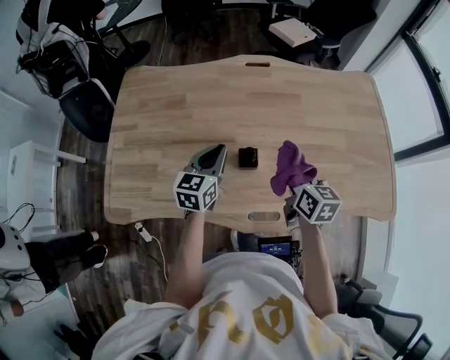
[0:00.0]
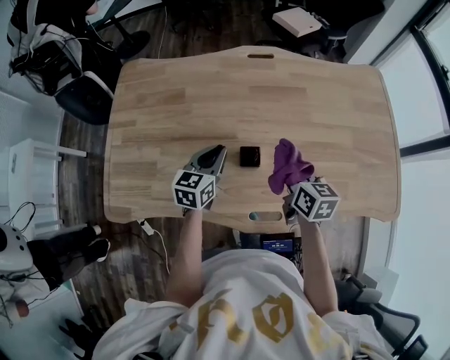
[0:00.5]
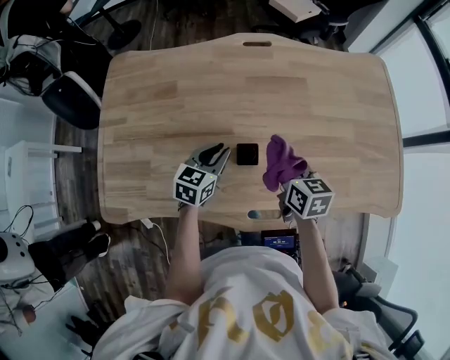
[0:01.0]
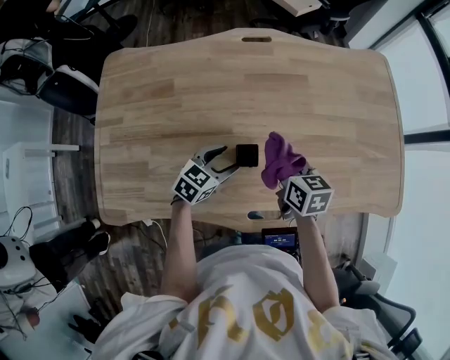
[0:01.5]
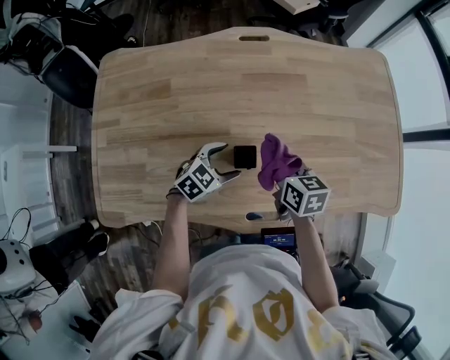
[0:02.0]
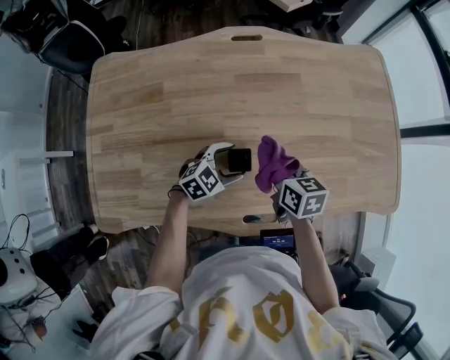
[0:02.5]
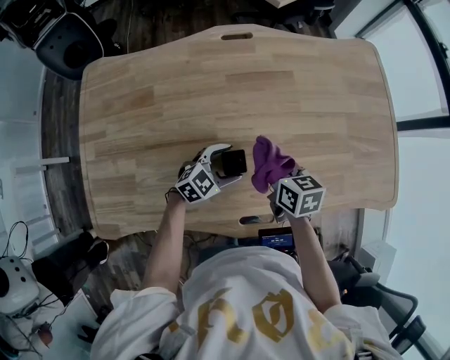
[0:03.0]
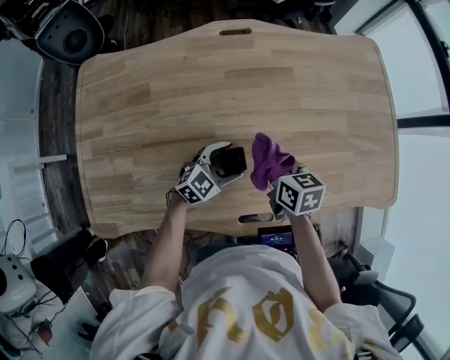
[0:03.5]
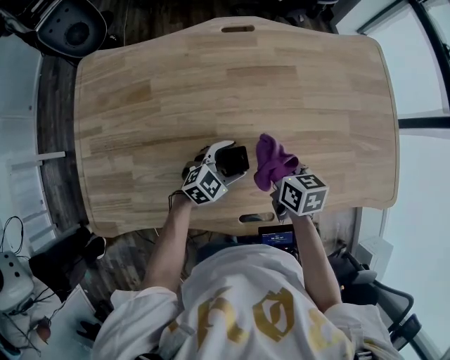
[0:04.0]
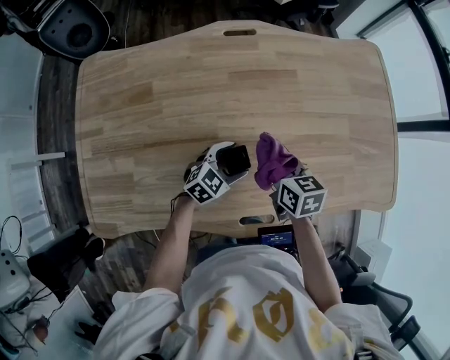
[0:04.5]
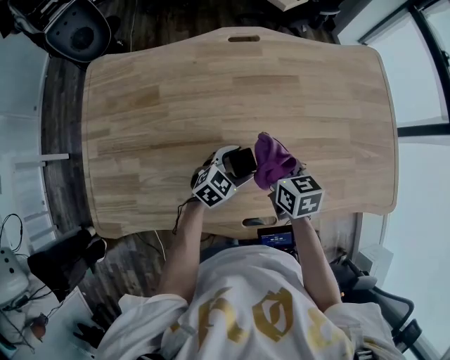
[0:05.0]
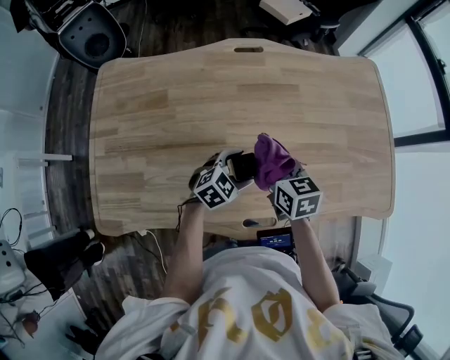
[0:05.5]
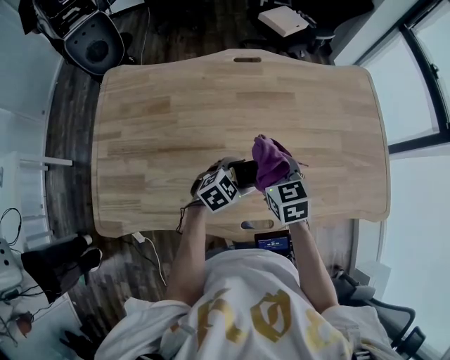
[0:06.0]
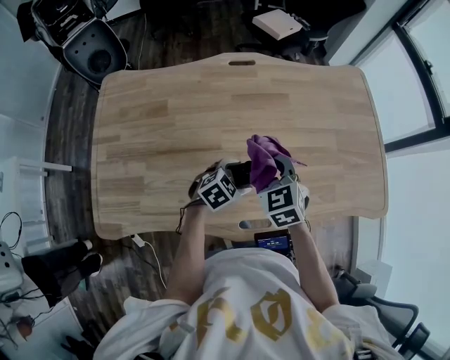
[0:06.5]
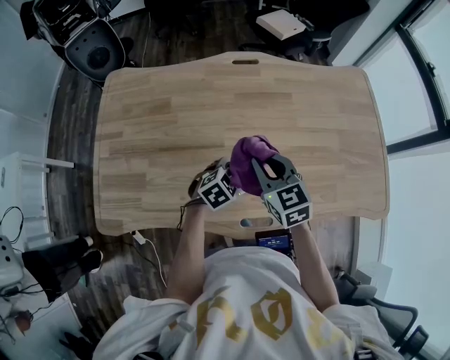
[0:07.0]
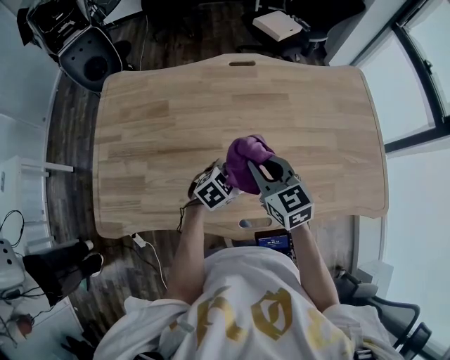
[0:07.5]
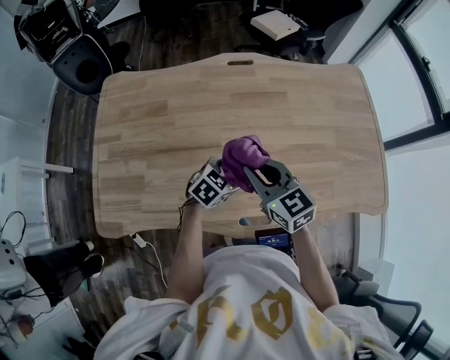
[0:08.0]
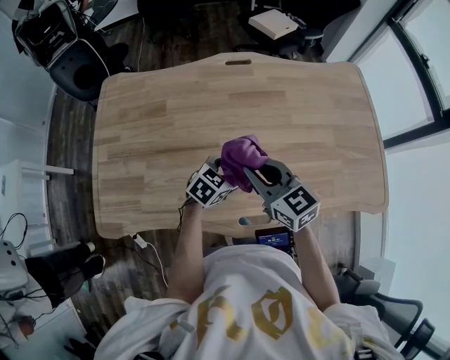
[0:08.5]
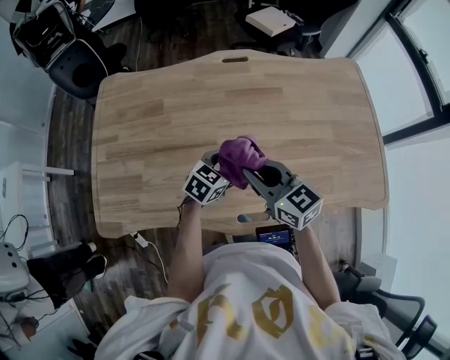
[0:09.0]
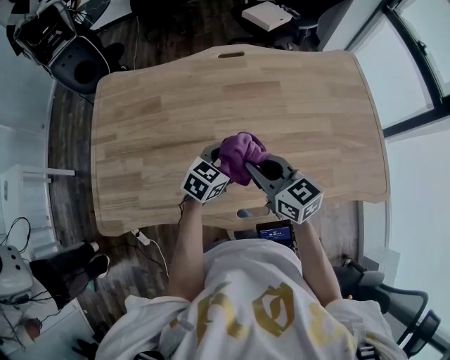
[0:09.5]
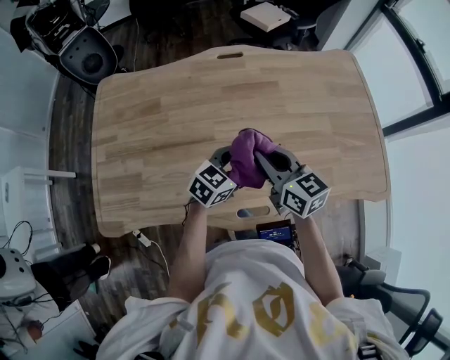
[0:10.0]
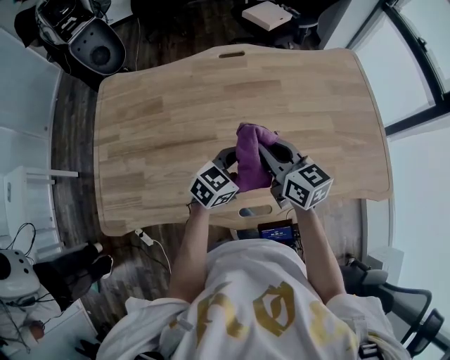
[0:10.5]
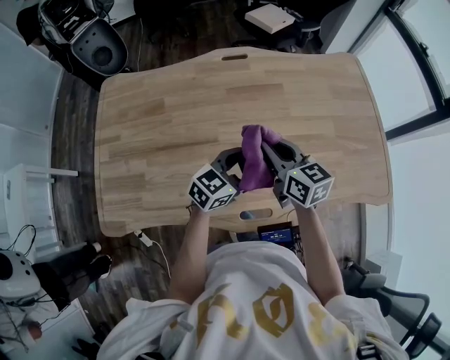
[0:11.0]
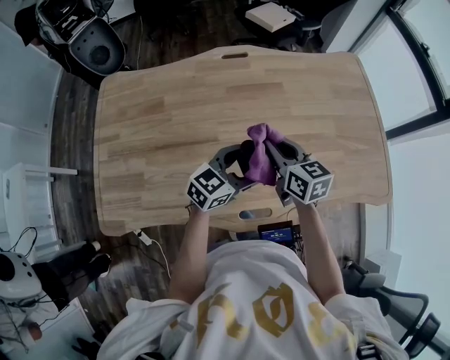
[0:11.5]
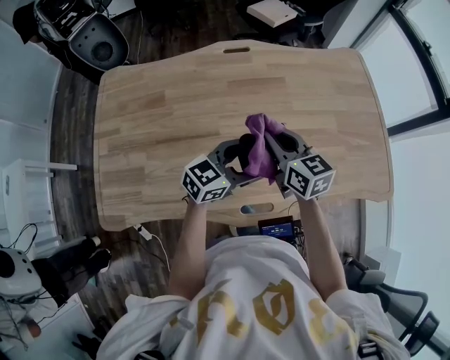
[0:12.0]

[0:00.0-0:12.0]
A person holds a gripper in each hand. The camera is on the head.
0:00.0 to 0:02.0: The right gripper heads downward, covering about 10 cm; the left gripper travels downward by some 15 cm, rotates roughly 50 degrees, and opens its fingers.
0:02.0 to 0:04.0: The left gripper changes place by about 5 cm.
0:04.0 to 0:06.0: The two grippers go about 10 cm upward. The right gripper swivels approximately 30 degrees.
0:06.0 to 0:08.0: The right gripper travels backward and upward by roughly 10 cm, and turns by approximately 20 degrees.
0:08.0 to 0:10.0: The left gripper goes approximately 10 cm upward and to the right; the right gripper heads to the right, covering approximately 5 cm.
0:10.0 to 0:12.0: The left gripper goes some 5 cm upward.

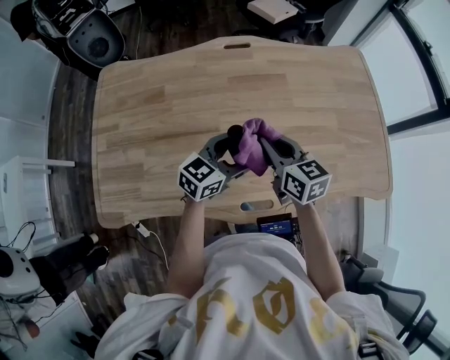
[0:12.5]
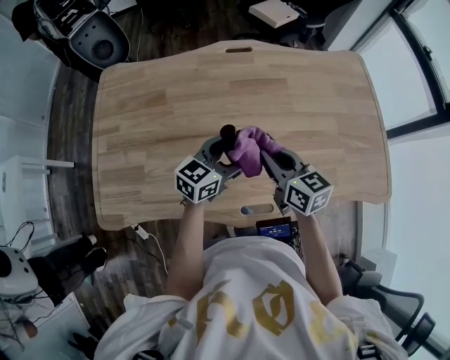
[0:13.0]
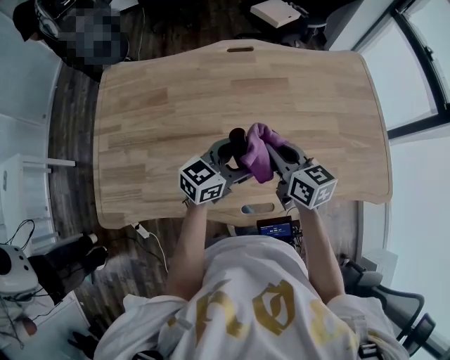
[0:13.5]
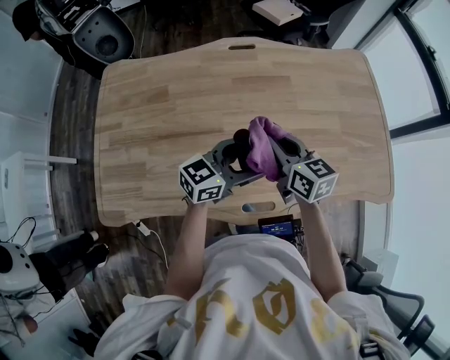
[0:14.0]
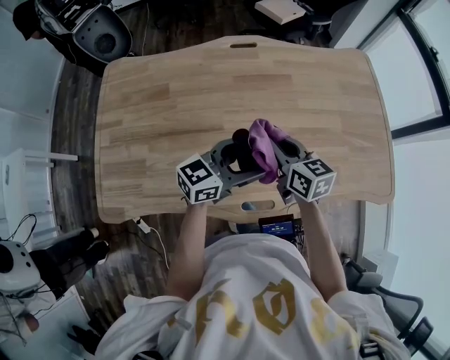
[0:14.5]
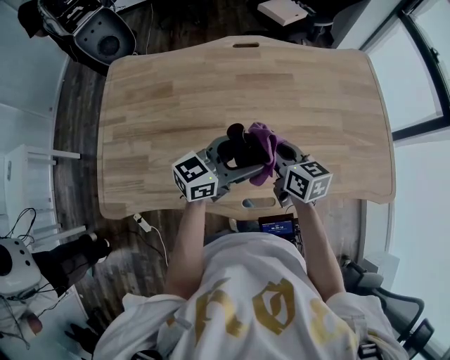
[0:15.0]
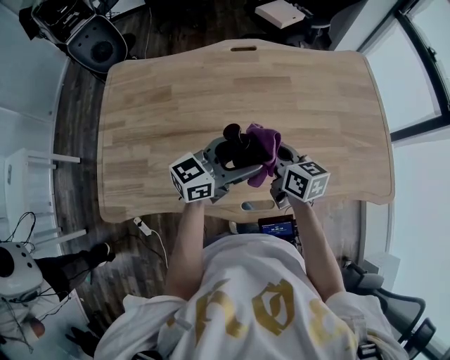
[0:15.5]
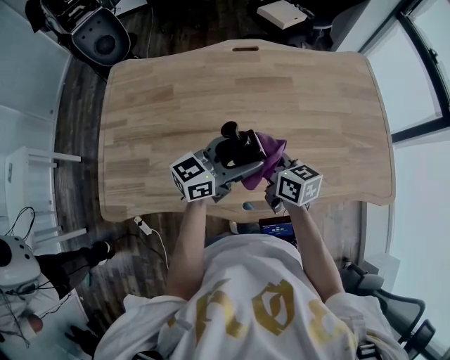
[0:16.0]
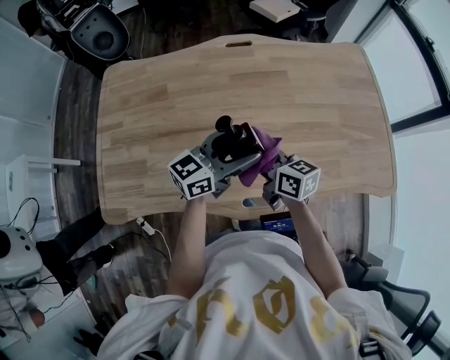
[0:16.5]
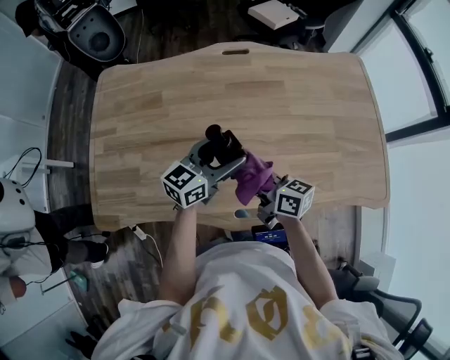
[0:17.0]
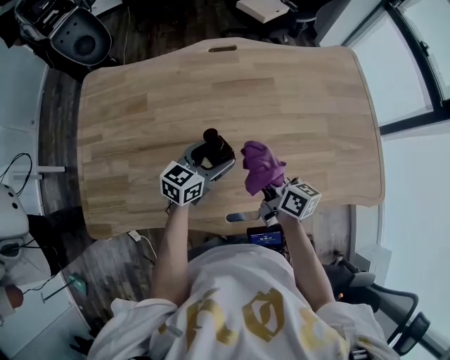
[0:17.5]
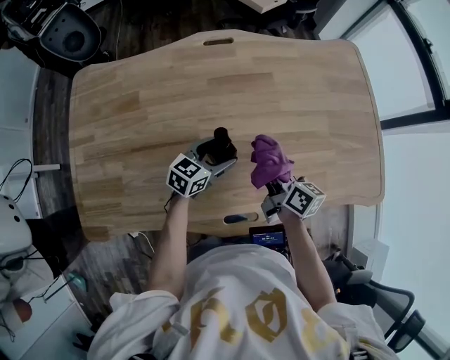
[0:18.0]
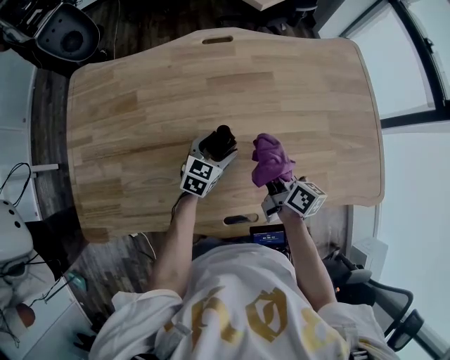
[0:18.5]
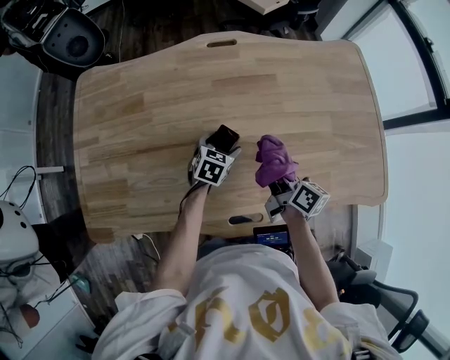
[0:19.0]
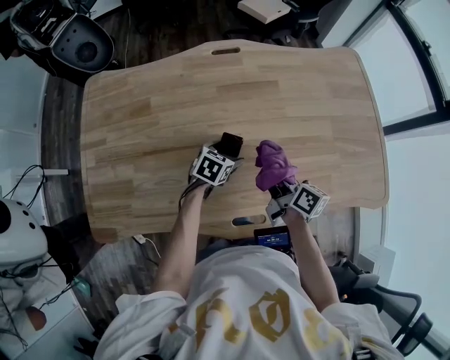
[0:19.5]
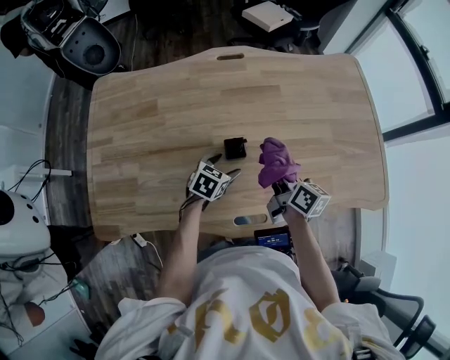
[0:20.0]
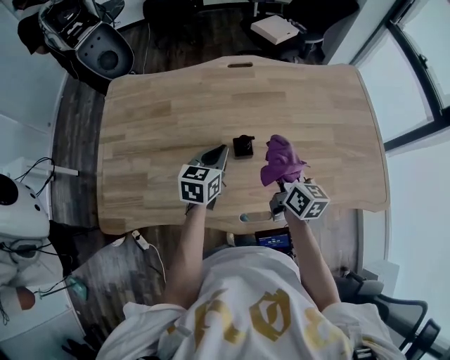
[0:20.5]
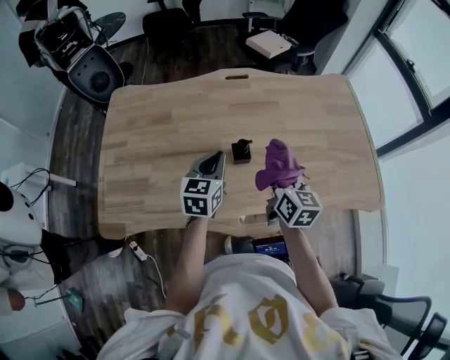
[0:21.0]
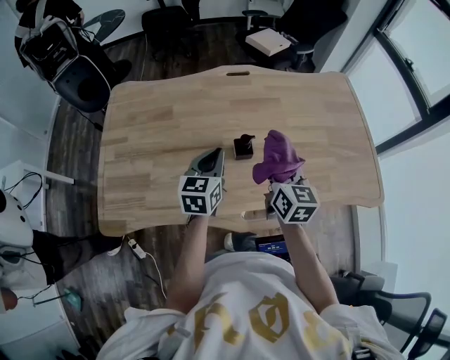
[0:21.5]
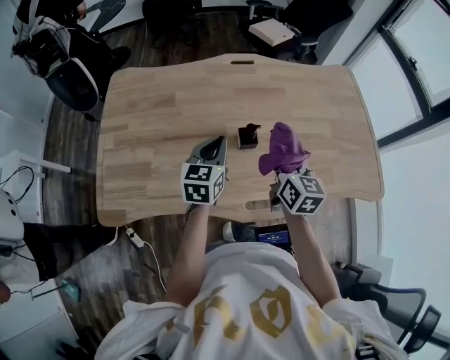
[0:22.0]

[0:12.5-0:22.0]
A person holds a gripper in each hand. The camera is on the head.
0:12.5 to 0:14.5: The grippers make only small movements.
0:14.5 to 0:16.5: The right gripper heads backward, covering approximately 5 cm.
0:16.5 to 0:18.0: The left gripper goes about 20 cm downward, and rotates about 30 degrees. Meanwhile the right gripper moves to the right, downward and forward, some 15 cm, and swivels some 30 degrees.
0:18.0 to 0:20.0: The left gripper turns by approximately 20 degrees.
0:20.0 to 0:22.0: The left gripper goes some 20 cm upward, swivels roughly 40 degrees, and closes up. The right gripper is displaced upward by approximately 10 cm, and rotates approximately 30 degrees.

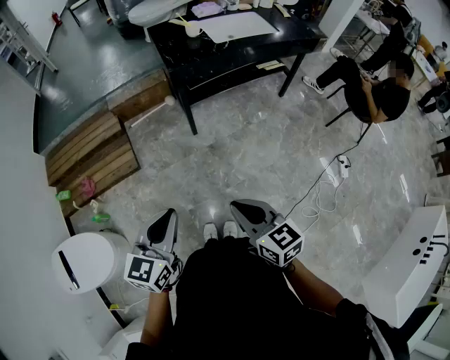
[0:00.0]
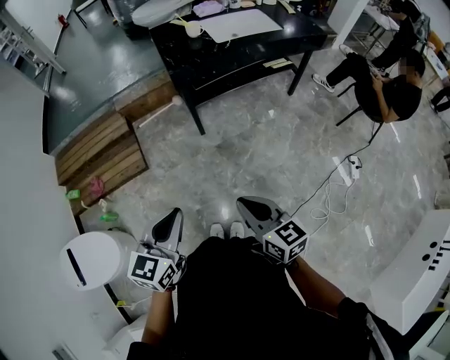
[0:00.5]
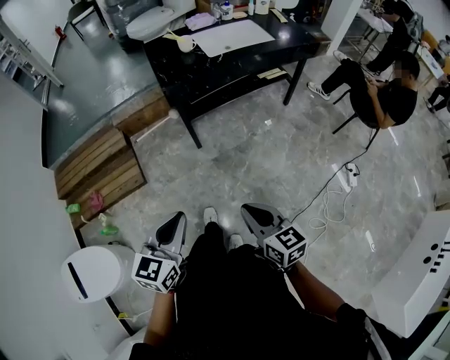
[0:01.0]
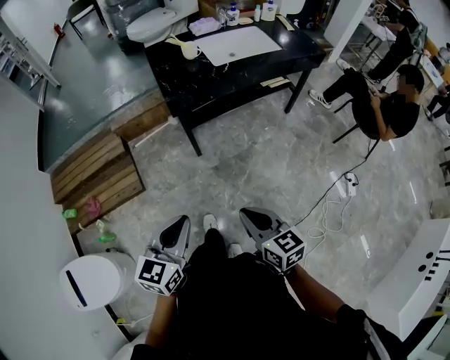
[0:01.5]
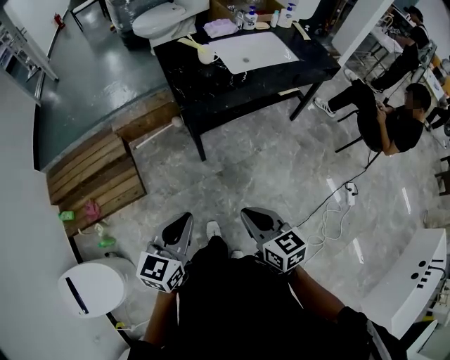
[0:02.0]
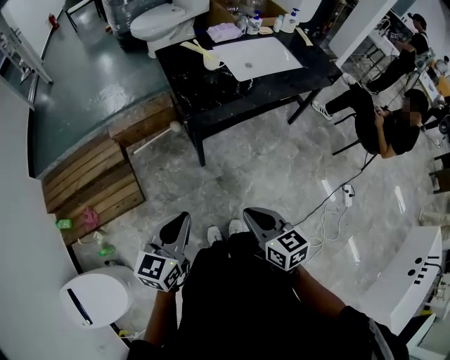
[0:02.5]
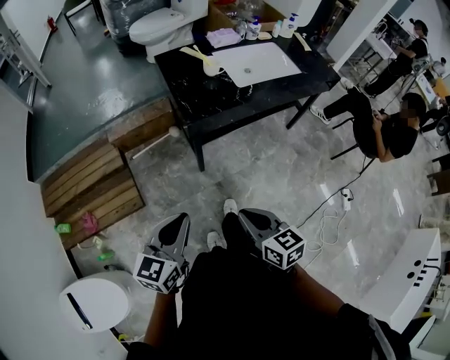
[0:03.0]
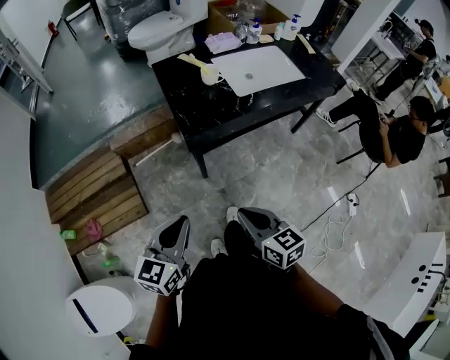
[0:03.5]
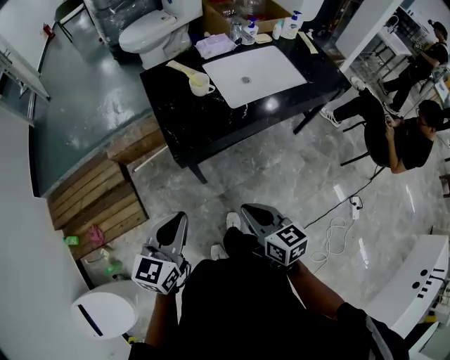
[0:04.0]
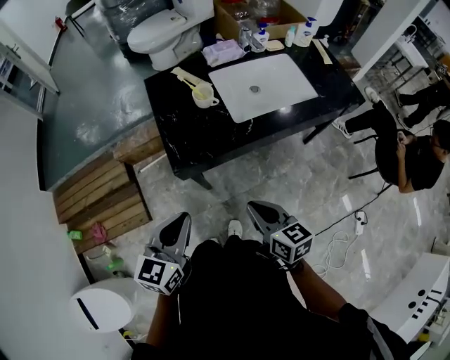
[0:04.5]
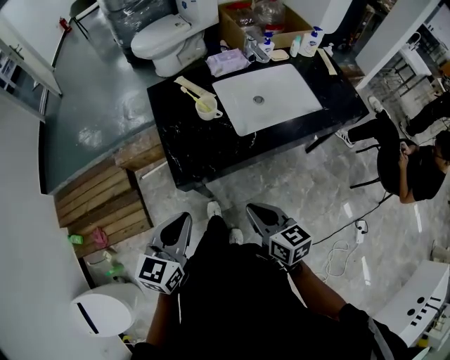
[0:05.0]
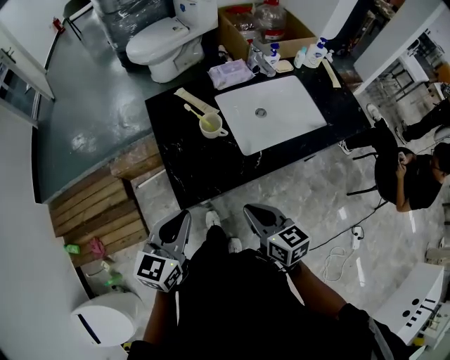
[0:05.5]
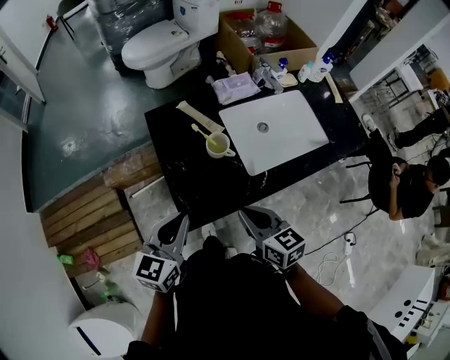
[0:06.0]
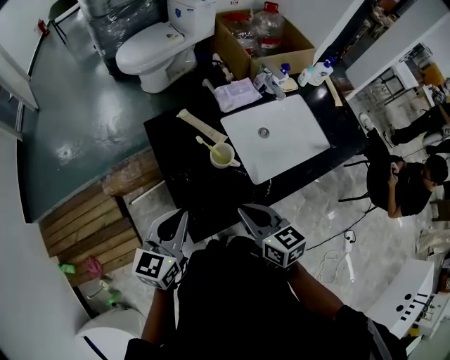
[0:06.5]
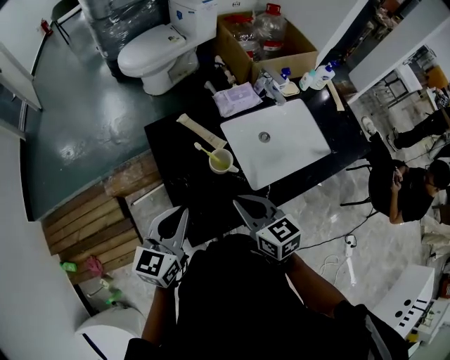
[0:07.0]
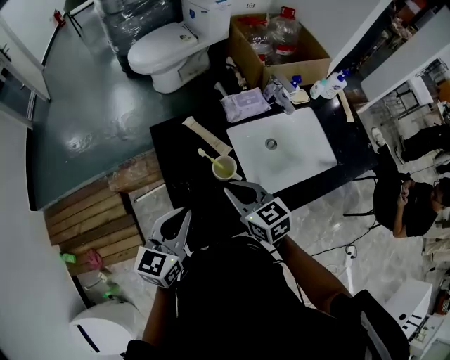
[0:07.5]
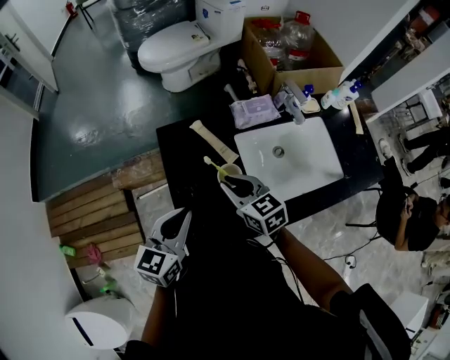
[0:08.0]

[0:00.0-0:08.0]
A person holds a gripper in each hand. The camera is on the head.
0:00.0 to 0:02.0: Both grippers move forward, about 20 cm.
0:02.0 to 0:04.0: Both grippers move forward, approximately 20 cm.
0:04.0 to 0:06.0: Both grippers travel together forward, approximately 25 cm.
0:06.0 to 0:08.0: The left gripper shifts about 10 cm forward. Meanwhile the right gripper goes roughly 20 cm forward.
